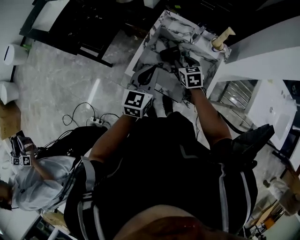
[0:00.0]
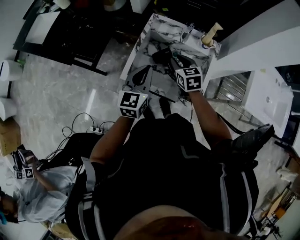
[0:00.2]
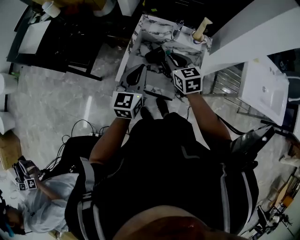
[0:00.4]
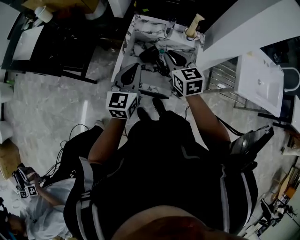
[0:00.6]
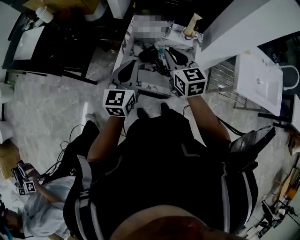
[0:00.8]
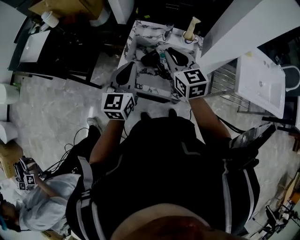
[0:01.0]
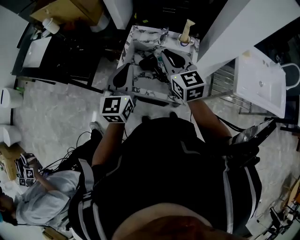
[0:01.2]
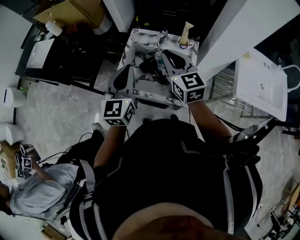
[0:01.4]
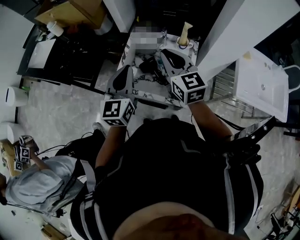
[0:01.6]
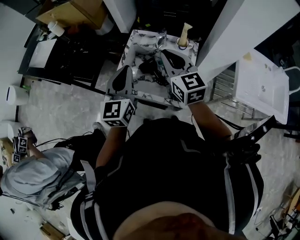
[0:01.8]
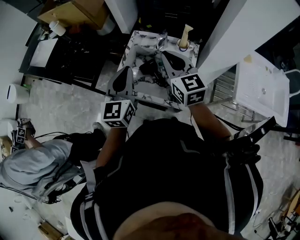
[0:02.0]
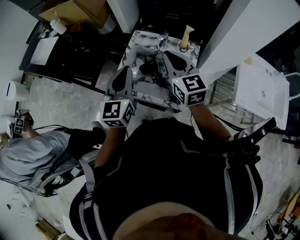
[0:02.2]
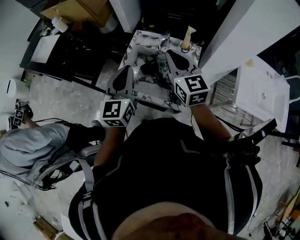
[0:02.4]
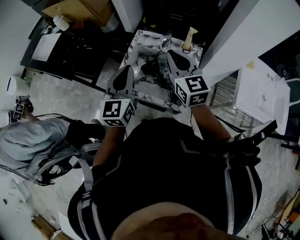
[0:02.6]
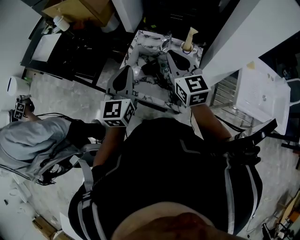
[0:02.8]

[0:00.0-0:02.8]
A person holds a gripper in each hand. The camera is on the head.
0:00.0 to 0:01.4: The left gripper goes approximately 15 cm upward; the right gripper travels upward by roughly 25 cm, points its fingers some 30 degrees further upward, and closes.
0:01.4 to 0:02.8: There are only small adjustments of the grippers.

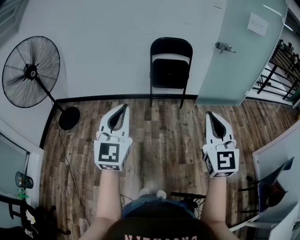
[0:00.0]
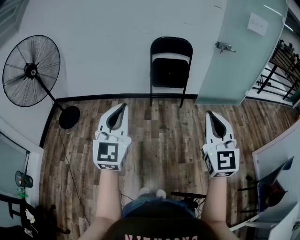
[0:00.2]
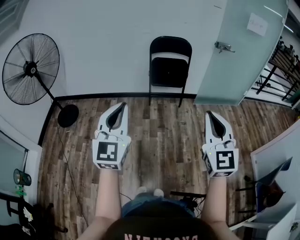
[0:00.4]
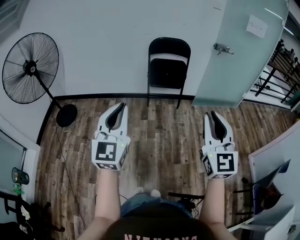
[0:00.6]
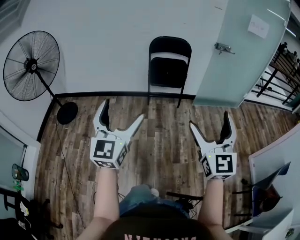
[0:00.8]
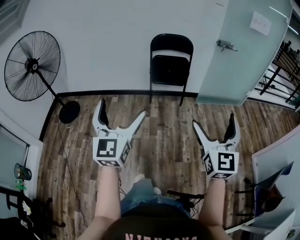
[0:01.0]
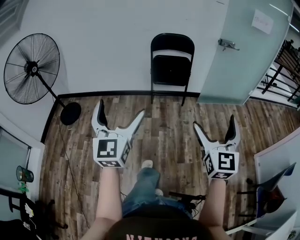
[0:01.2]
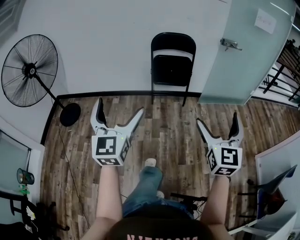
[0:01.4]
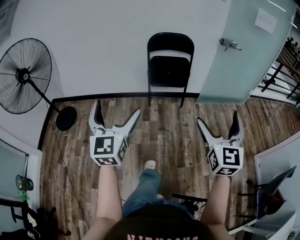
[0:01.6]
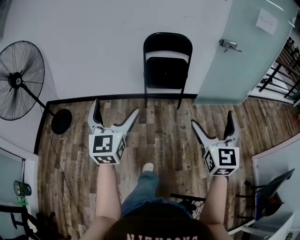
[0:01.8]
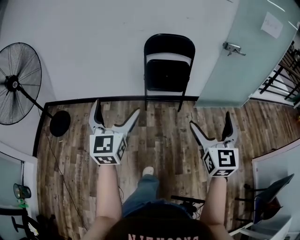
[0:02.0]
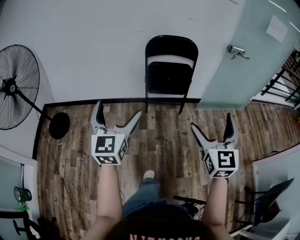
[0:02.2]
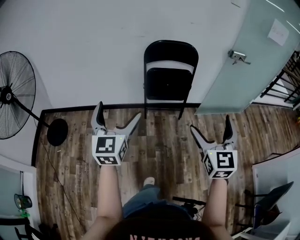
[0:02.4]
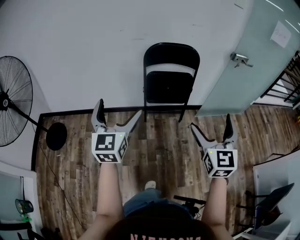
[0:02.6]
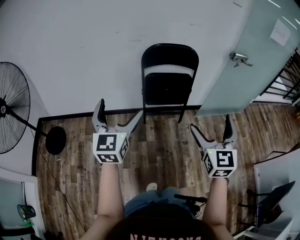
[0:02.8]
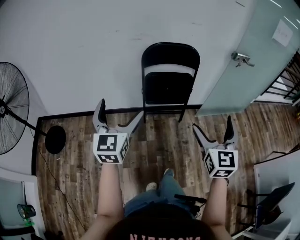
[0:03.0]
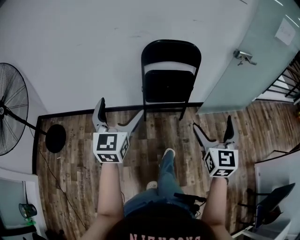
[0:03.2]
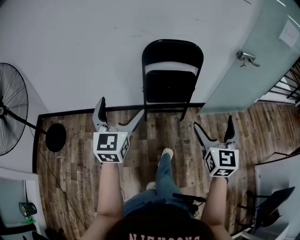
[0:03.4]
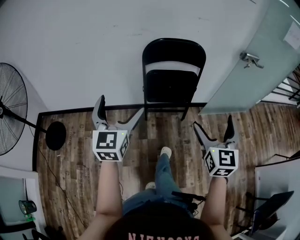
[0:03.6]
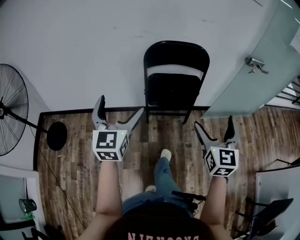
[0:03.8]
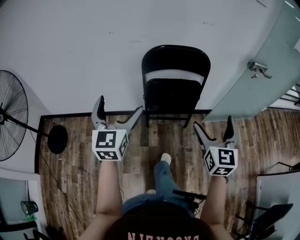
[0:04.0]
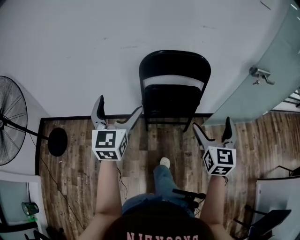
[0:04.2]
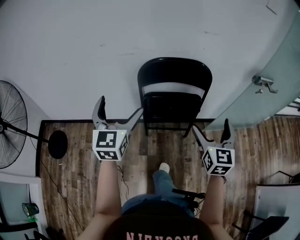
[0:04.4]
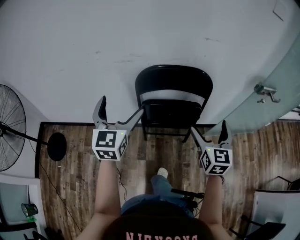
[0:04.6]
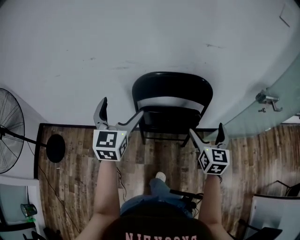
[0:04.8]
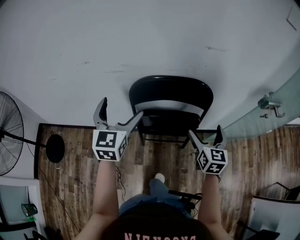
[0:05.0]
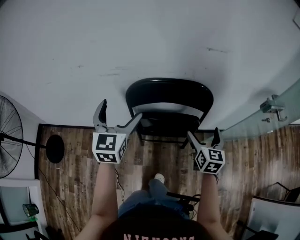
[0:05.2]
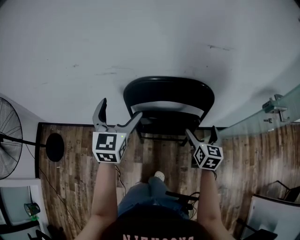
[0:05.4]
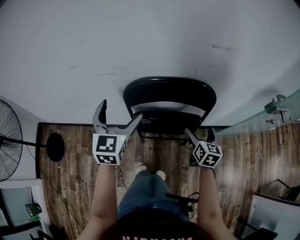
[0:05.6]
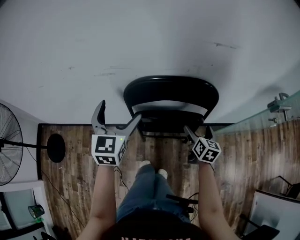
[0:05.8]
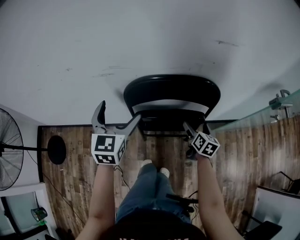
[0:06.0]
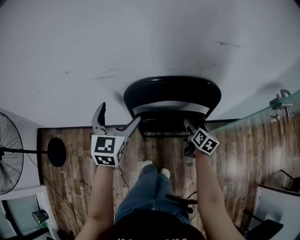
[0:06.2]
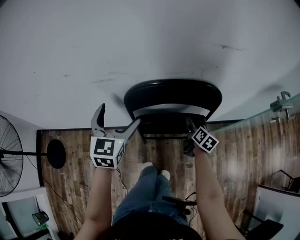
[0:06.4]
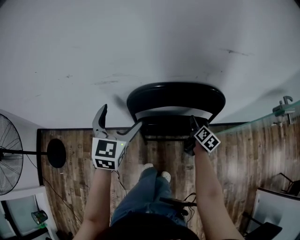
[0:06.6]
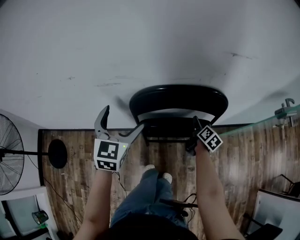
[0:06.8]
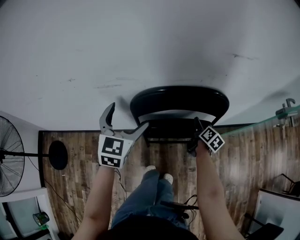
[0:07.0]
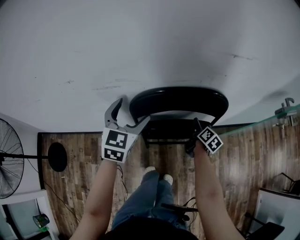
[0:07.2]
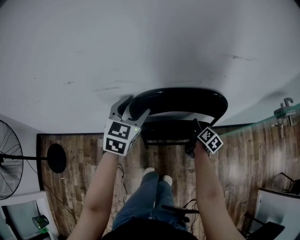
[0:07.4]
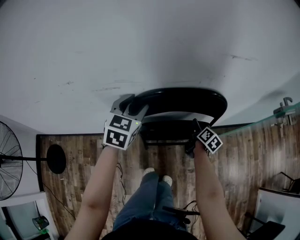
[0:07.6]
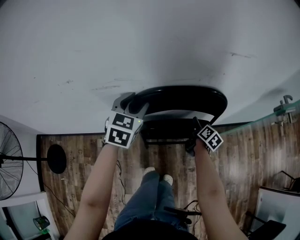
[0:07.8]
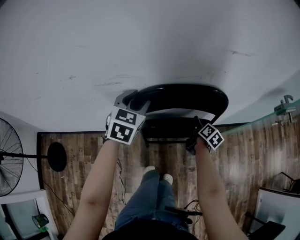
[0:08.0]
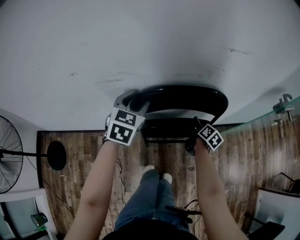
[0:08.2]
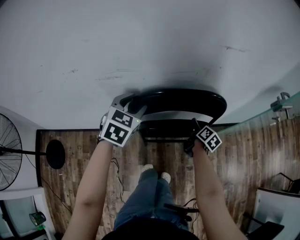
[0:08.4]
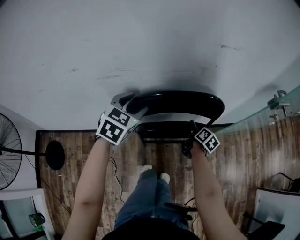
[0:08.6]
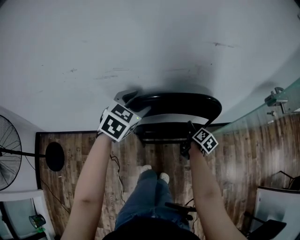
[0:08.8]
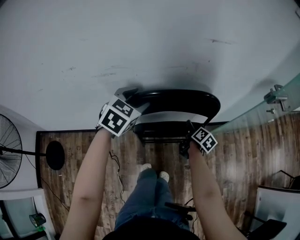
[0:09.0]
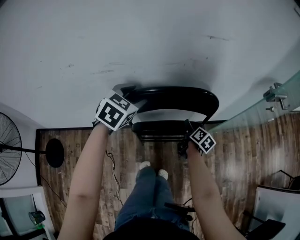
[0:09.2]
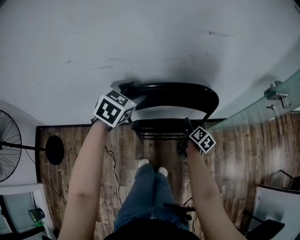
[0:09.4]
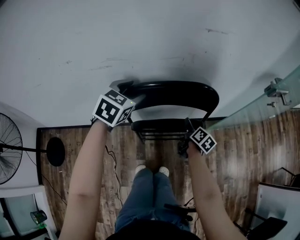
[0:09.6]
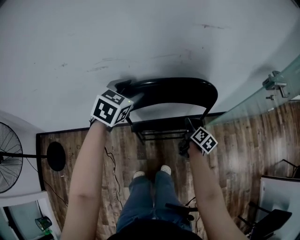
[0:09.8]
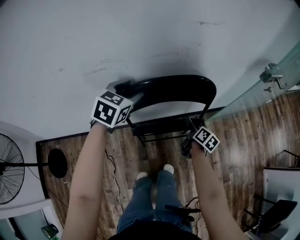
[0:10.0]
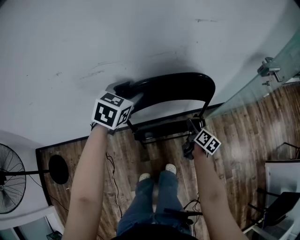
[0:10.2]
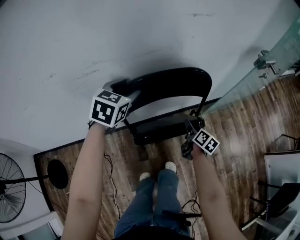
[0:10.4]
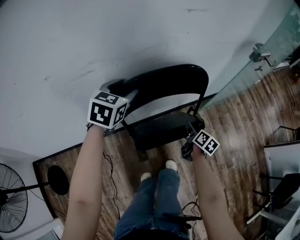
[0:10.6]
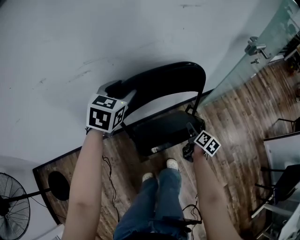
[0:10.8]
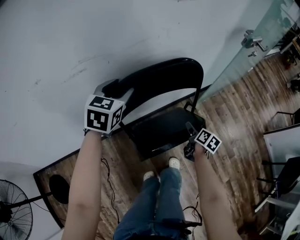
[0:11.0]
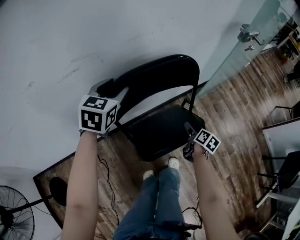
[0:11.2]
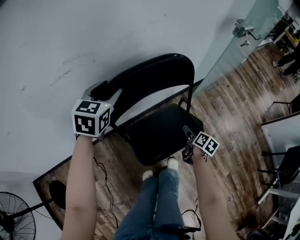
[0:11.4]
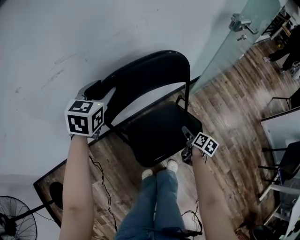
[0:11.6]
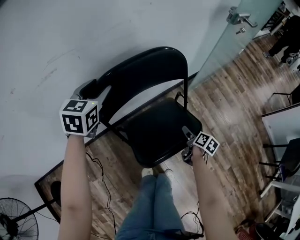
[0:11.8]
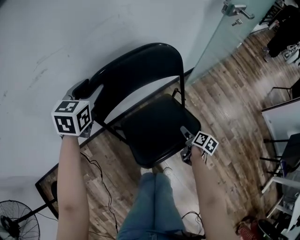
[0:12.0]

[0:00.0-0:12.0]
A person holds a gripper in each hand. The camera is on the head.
0:00.0 to 0:01.6: The left gripper moves forward, some 15 cm, and opens its fingers, while the right gripper moves forward and to the right, approximately 15 cm, and opens its fingers.
0:01.6 to 0:03.0: The two grippers go roughly 35 cm forward.
0:03.0 to 0:04.4: Both grippers move forward, some 30 cm.
0:04.4 to 0:06.0: The right gripper shifts approximately 35 cm forward and downward, and swivels about 40 degrees, while the left gripper travels forward and downward by about 20 cm.
0:06.0 to 0:07.6: The left gripper is displaced forward by approximately 10 cm, and closes its fingers, while the right gripper is displaced forward by approximately 5 cm, rotates about 30 degrees, and closes up.
0:07.6 to 0:09.0: The right gripper moves backward, some 5 cm. Meanwhile the left gripper heads to the right, covering some 5 cm.
0:09.0 to 0:10.4: The right gripper travels backward by approximately 10 cm.
0:10.4 to 0:12.0: The right gripper heads backward, downward and to the right, covering about 25 cm, and changes its angle by approximately 20 degrees; the left gripper goes approximately 5 cm downward.

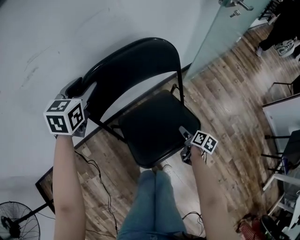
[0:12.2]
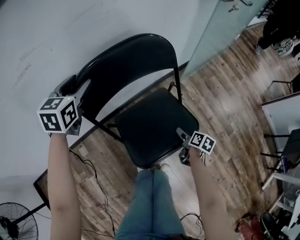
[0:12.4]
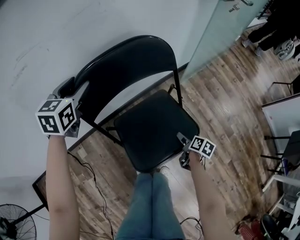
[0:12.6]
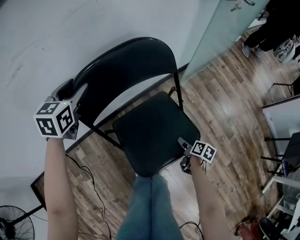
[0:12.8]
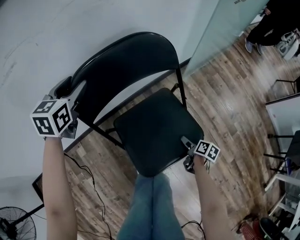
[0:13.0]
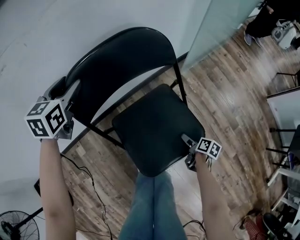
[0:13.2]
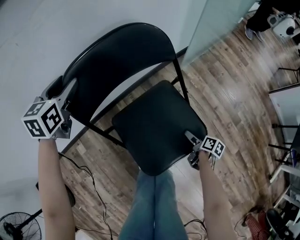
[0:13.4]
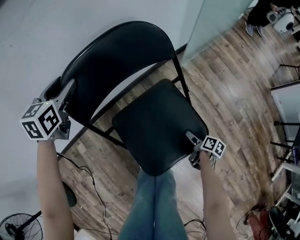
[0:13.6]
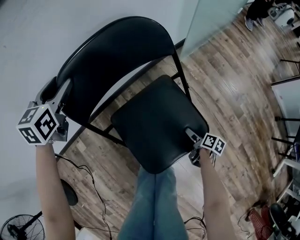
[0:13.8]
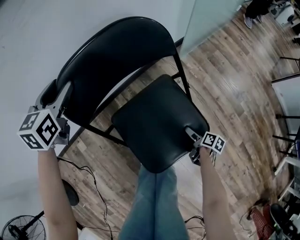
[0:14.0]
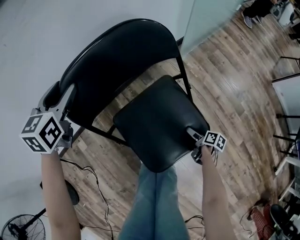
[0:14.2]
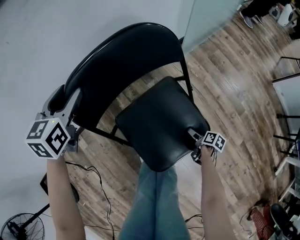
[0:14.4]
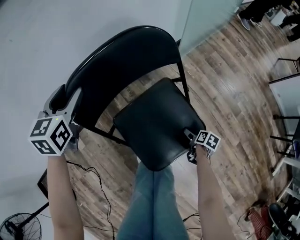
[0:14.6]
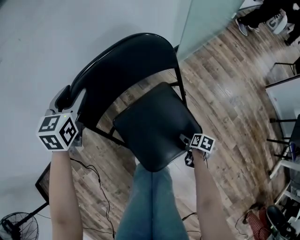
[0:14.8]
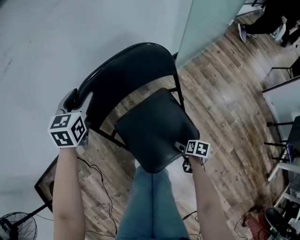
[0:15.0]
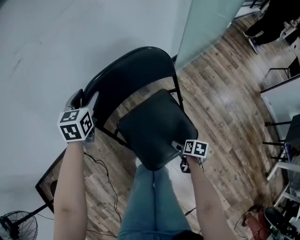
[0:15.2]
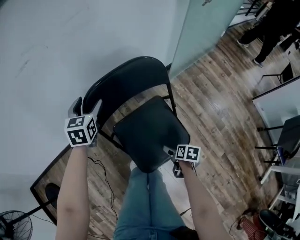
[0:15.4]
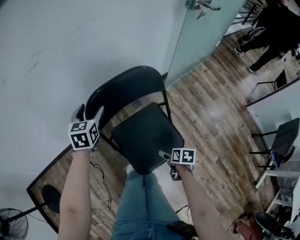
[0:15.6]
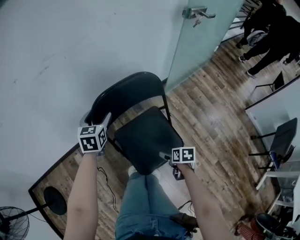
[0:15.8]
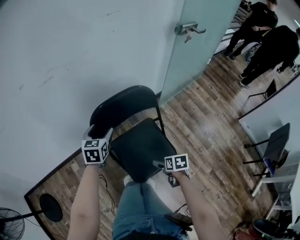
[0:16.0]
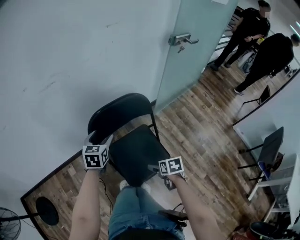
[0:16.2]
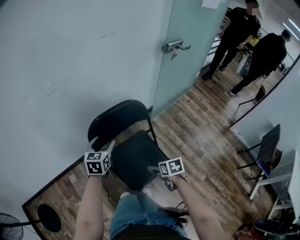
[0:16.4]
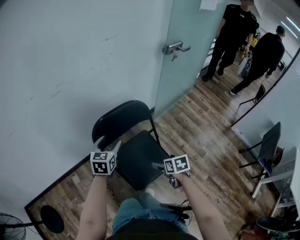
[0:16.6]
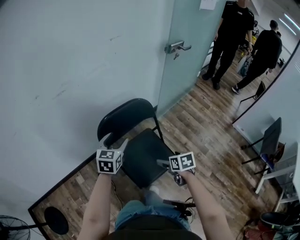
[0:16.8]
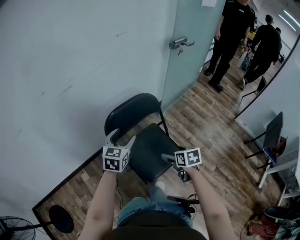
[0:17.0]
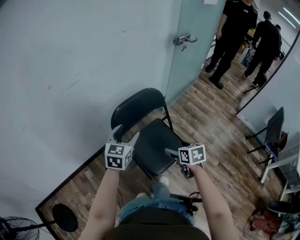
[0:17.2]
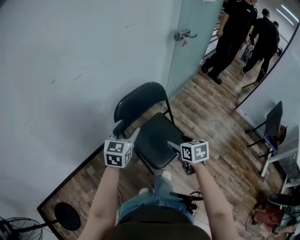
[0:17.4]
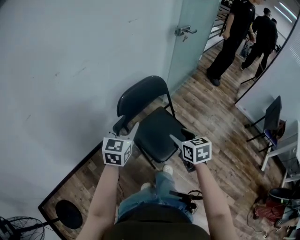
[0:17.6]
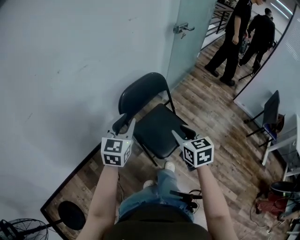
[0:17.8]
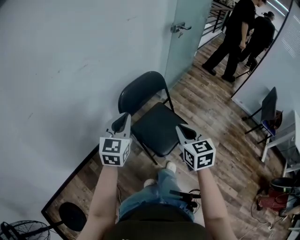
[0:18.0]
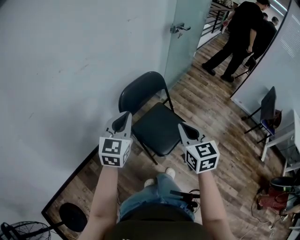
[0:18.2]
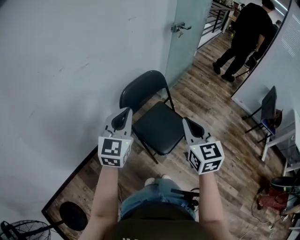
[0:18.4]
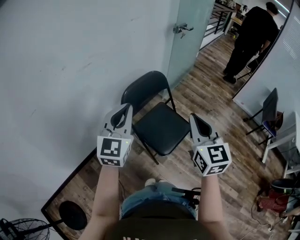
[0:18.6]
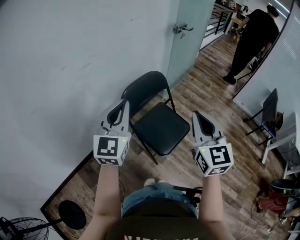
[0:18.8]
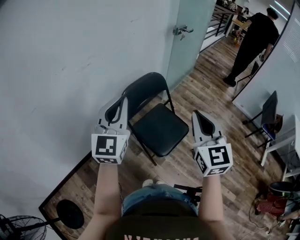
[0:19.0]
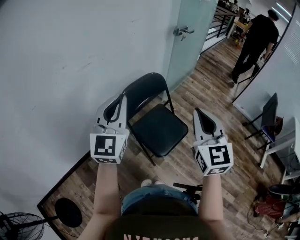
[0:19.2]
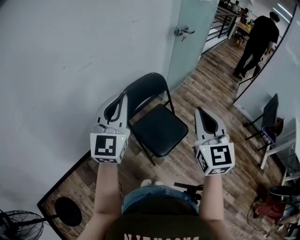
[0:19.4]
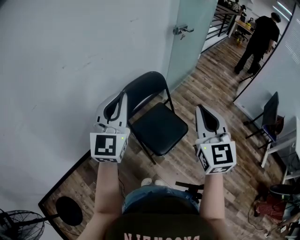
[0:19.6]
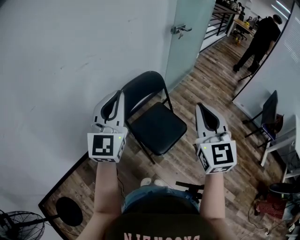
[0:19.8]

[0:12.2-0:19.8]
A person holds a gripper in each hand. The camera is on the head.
0:12.2 to 0:13.8: The right gripper moves downward and backward, roughly 20 cm, while the left gripper shifts about 10 cm downward.
0:13.8 to 0:15.2: The right gripper moves upward, about 10 cm, and changes its angle by approximately 30 degrees; the left gripper goes about 5 cm backward.
0:15.2 to 0:16.8: The left gripper is displaced backward and upward by roughly 25 cm. The right gripper goes about 30 cm upward, and swivels approximately 30 degrees.
0:16.8 to 0:18.2: The right gripper shifts some 30 cm upward, backward and to the left, tips its fingers upward by about 30 degrees, and closes up. The left gripper is displaced backward, upward and to the left by about 25 cm, rotates about 20 degrees, and closes.
0:18.2 to 0:19.8: The left gripper shifts about 15 cm upward, and changes its angle by about 20 degrees, while the right gripper heads upward and to the right, covering some 15 cm, and swivels roughly 20 degrees.

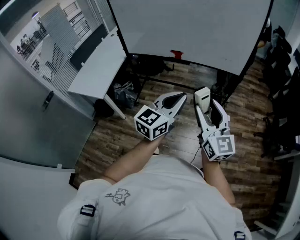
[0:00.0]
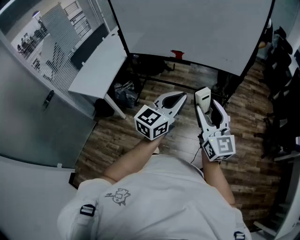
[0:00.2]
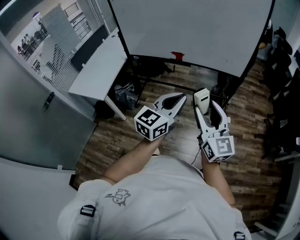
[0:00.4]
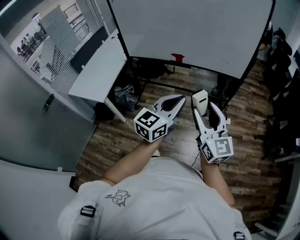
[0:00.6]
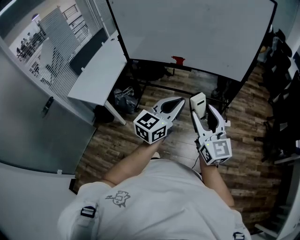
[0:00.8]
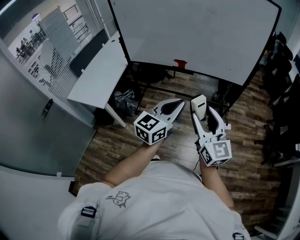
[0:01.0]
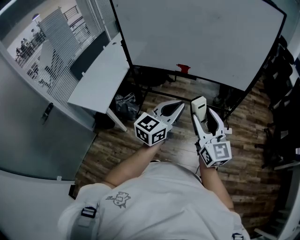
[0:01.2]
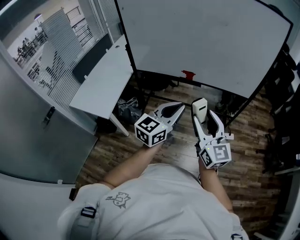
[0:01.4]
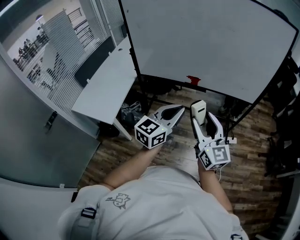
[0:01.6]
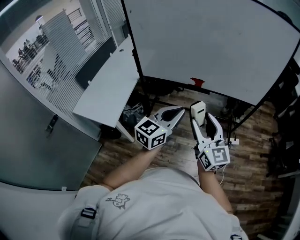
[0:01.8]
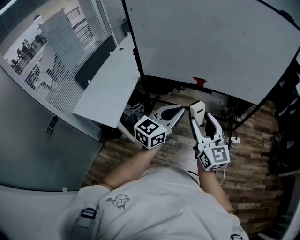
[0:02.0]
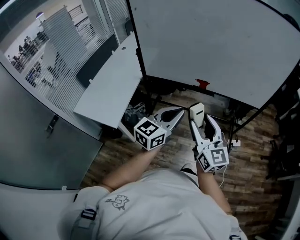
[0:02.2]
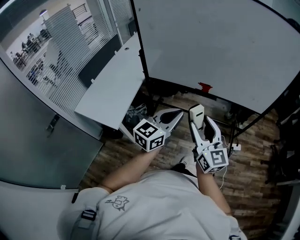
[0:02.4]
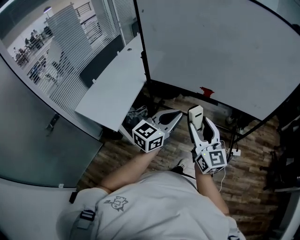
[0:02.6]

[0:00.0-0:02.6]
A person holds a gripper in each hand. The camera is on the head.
0:00.0 to 0:01.2: The two grippers go roughly 10 cm to the left and forward.
0:01.2 to 0:02.6: Both grippers travel together to the left and forward, about 25 cm.
